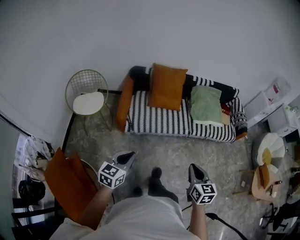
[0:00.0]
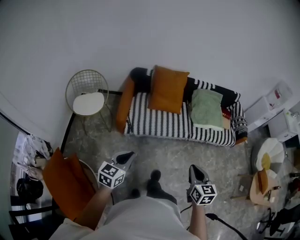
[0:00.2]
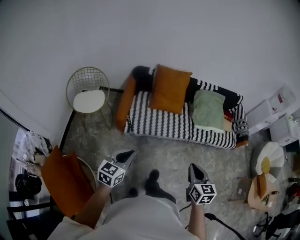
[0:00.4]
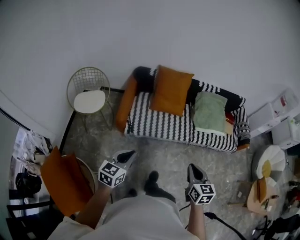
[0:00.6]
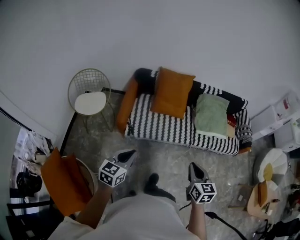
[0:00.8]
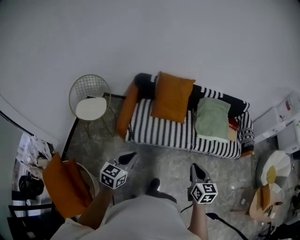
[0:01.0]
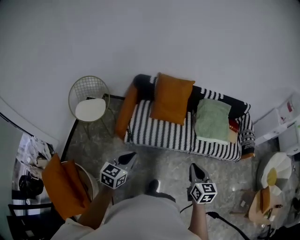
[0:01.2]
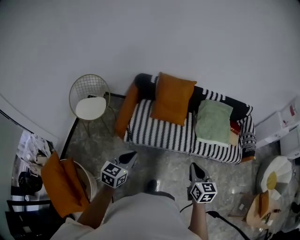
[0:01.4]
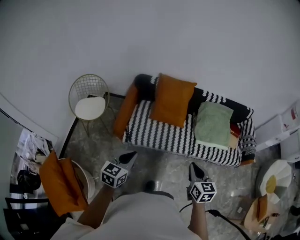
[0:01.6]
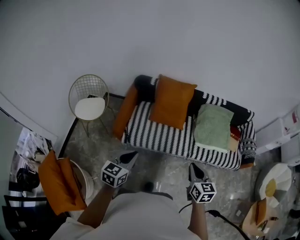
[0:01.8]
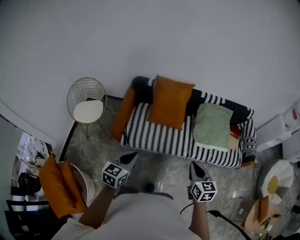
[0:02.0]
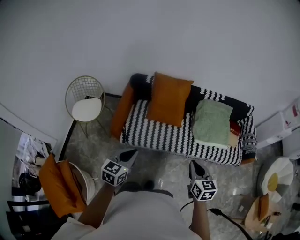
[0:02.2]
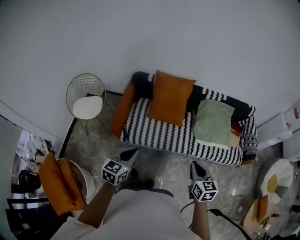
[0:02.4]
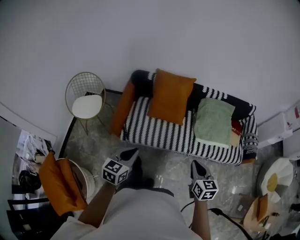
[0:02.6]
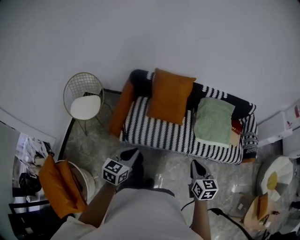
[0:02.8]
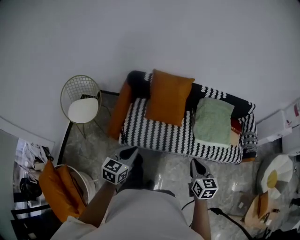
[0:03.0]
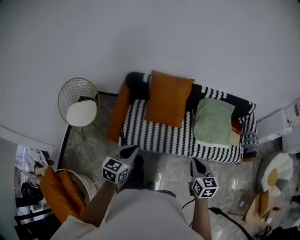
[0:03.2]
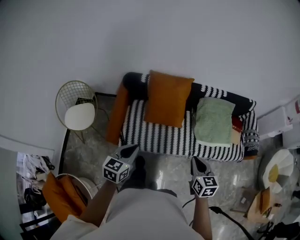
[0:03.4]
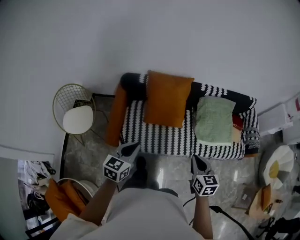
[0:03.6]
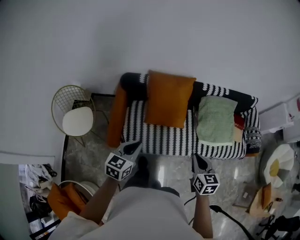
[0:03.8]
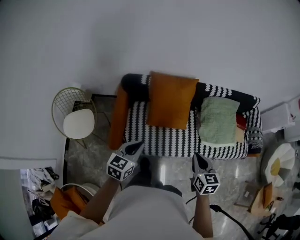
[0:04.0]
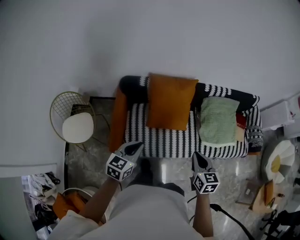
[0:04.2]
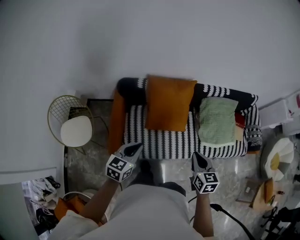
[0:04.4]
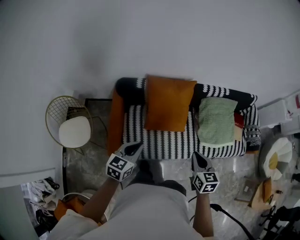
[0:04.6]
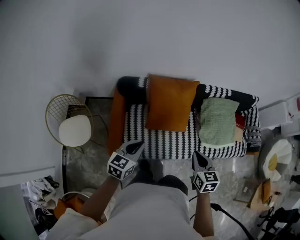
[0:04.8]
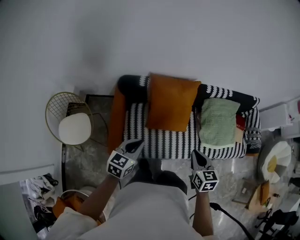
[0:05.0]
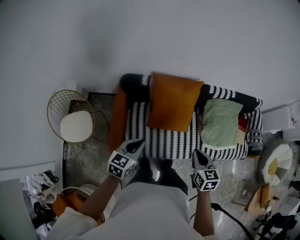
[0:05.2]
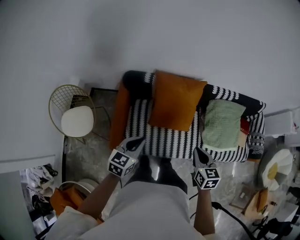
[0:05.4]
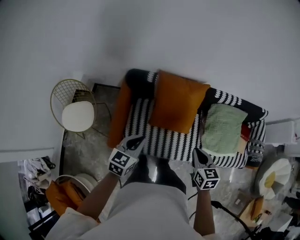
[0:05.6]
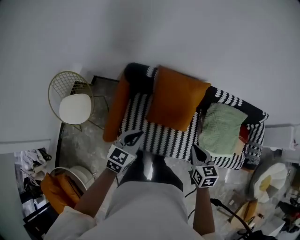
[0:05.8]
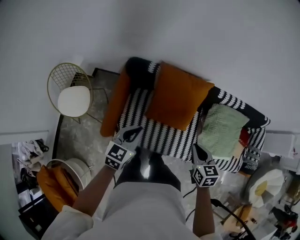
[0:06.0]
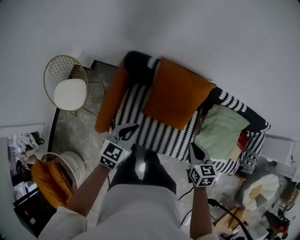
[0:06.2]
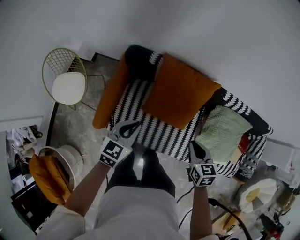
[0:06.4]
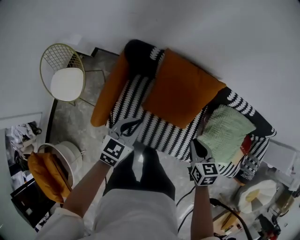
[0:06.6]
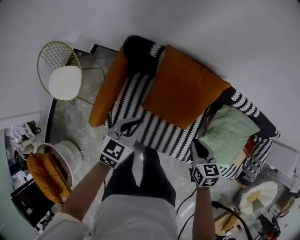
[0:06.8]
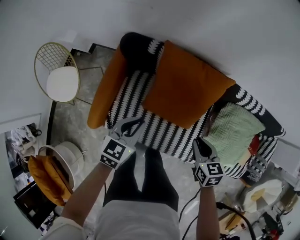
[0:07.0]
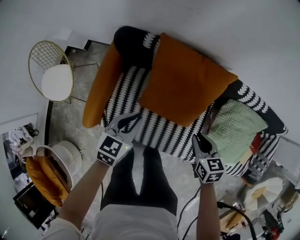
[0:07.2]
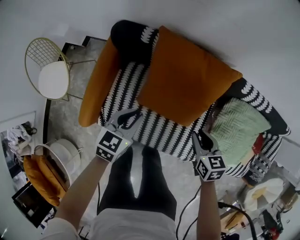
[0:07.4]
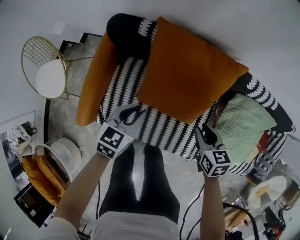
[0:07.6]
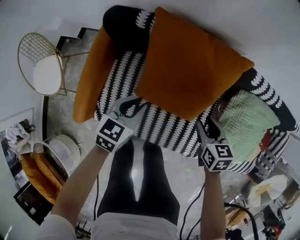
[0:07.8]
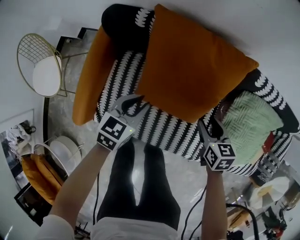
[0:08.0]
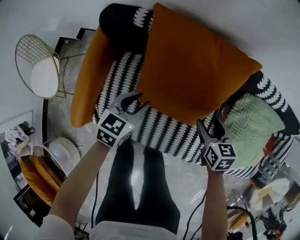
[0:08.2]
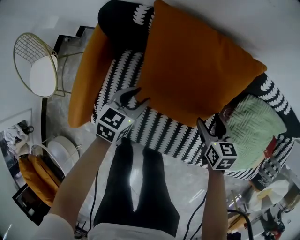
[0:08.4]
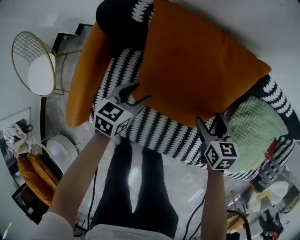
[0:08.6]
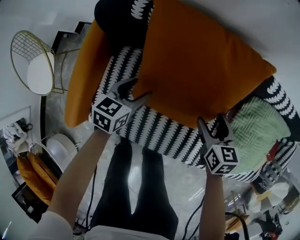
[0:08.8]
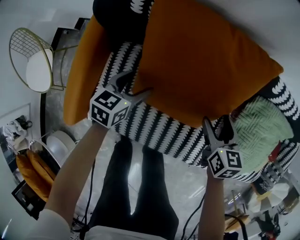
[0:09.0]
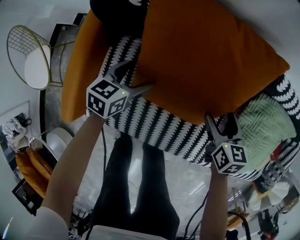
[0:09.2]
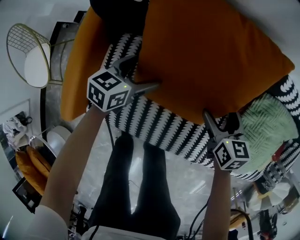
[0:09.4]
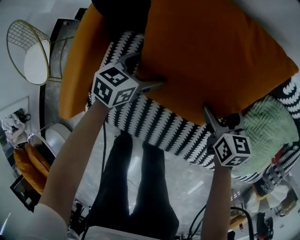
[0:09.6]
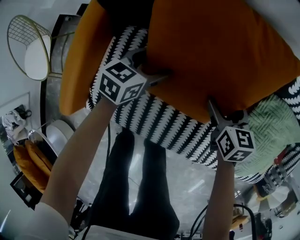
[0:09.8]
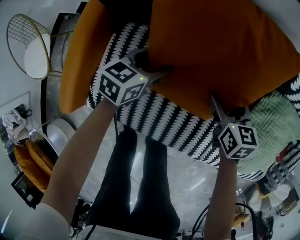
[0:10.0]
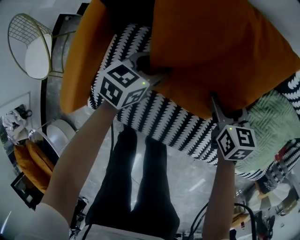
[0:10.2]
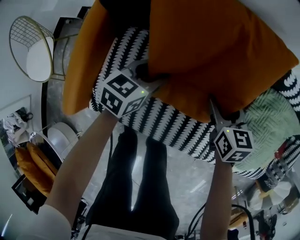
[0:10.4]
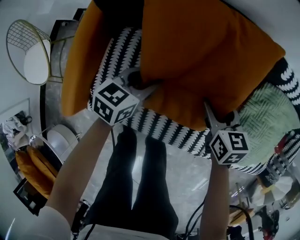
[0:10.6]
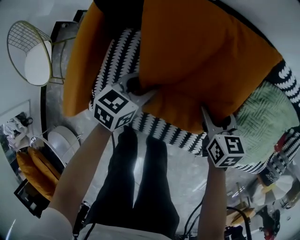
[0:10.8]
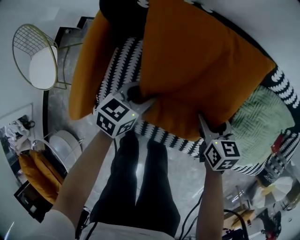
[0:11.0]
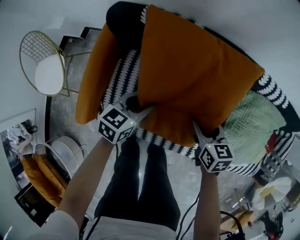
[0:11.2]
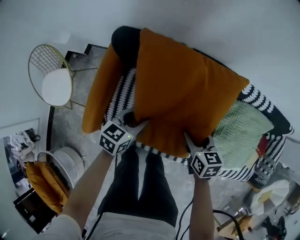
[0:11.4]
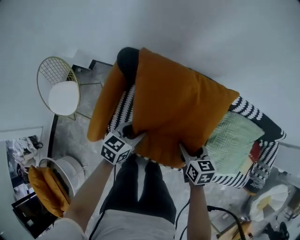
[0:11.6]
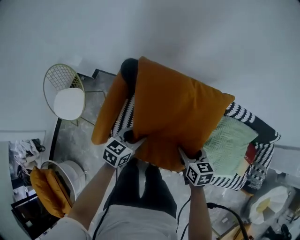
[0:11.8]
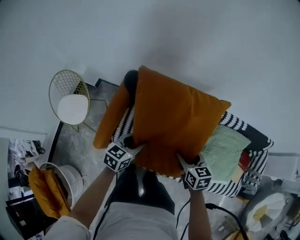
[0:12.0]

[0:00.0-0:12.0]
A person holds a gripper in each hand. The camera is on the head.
0.0 to 1.6 s: The left gripper goes roughly 25 cm forward and to the right. Meanwhile the right gripper goes roughly 25 cm forward.
1.6 to 3.0 s: The two grippers go approximately 15 cm forward.
3.0 to 4.4 s: Both grippers move forward and to the left, about 30 cm.
4.4 to 6.0 s: The right gripper moves forward and downward, some 15 cm. Meanwhile the left gripper heads forward, covering about 10 cm.
6.0 to 7.6 s: Both grippers travel together downward and forward, roughly 35 cm.
7.6 to 9.0 s: Both grippers travel together downward and forward, approximately 20 cm. The right gripper opens, while the left gripper opens its fingers.
9.0 to 10.4 s: The left gripper closes its fingers.
10.4 to 12.0 s: The two grippers go roughly 30 cm upward.

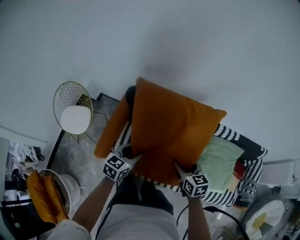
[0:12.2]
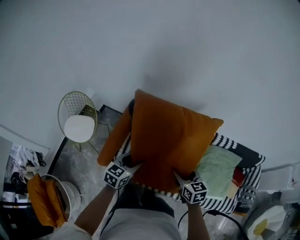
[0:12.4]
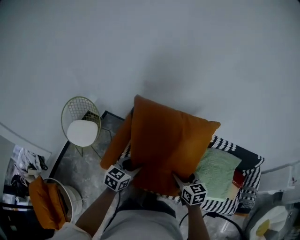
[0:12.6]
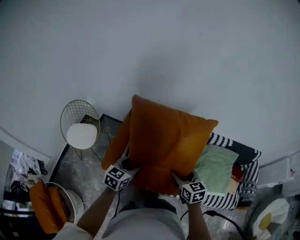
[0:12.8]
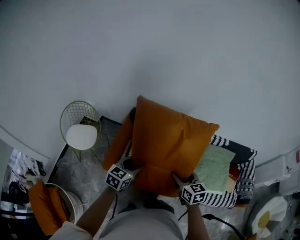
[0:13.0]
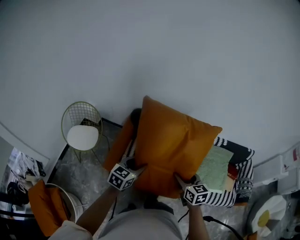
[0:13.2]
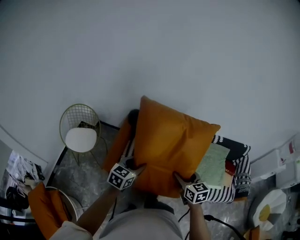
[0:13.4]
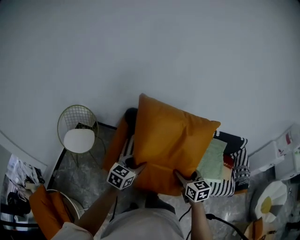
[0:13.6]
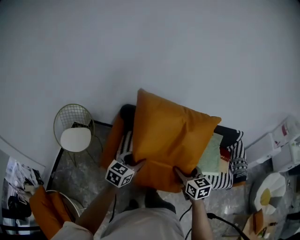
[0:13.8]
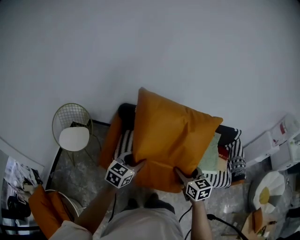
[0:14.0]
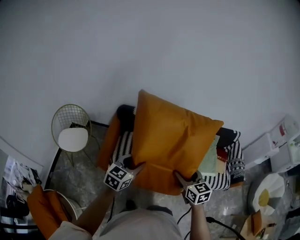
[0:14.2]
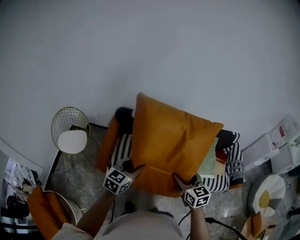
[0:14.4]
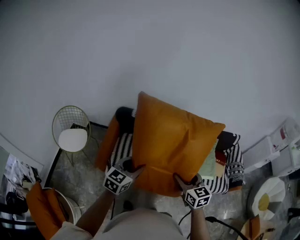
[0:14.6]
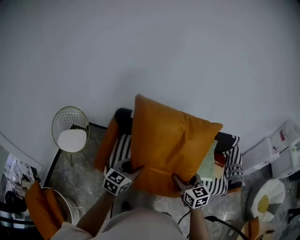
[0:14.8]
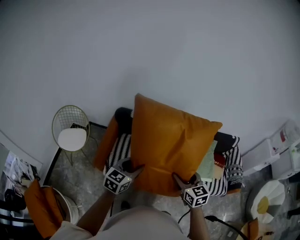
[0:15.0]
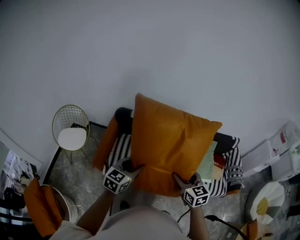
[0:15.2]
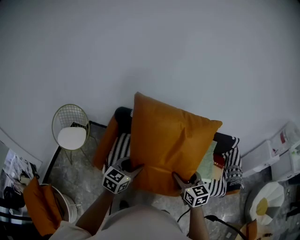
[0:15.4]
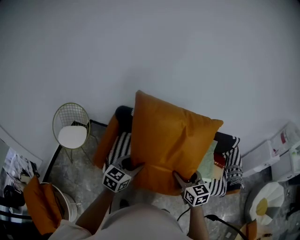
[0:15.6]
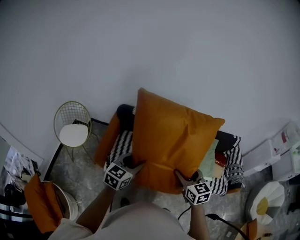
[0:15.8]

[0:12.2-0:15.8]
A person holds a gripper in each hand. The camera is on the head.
12.2 to 14.0 s: The grippers both shift backward and upward by approximately 35 cm.
14.0 to 15.8 s: The two grippers go roughly 10 cm to the right.

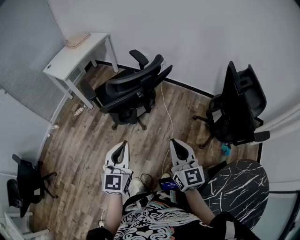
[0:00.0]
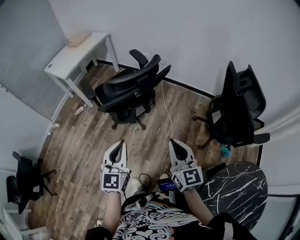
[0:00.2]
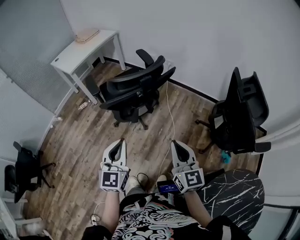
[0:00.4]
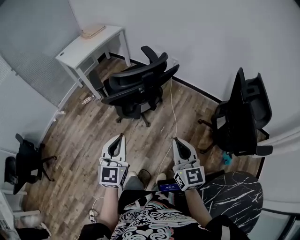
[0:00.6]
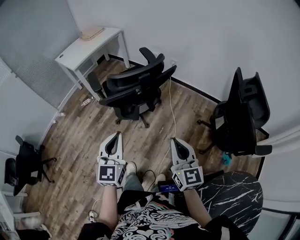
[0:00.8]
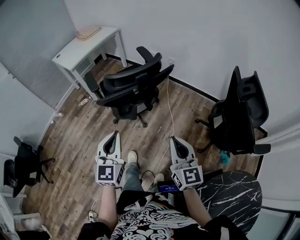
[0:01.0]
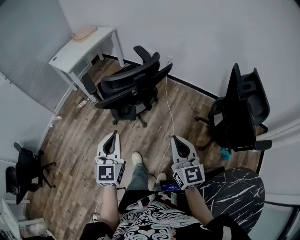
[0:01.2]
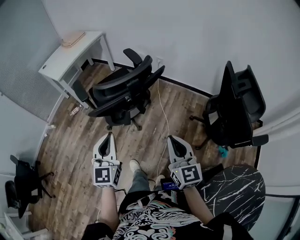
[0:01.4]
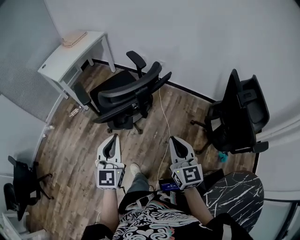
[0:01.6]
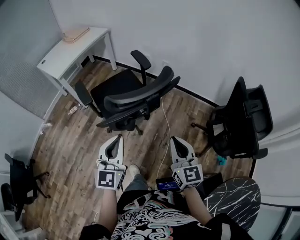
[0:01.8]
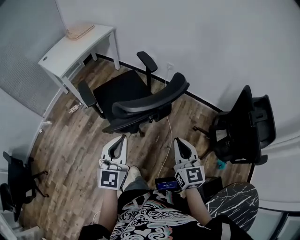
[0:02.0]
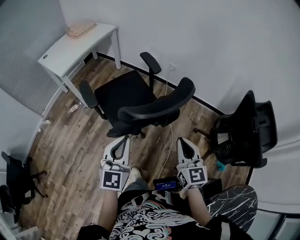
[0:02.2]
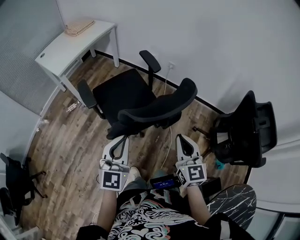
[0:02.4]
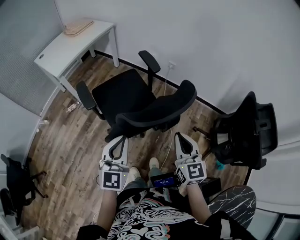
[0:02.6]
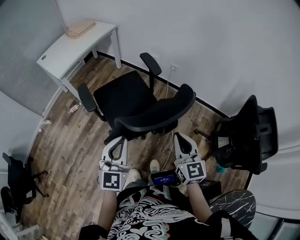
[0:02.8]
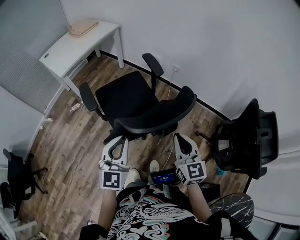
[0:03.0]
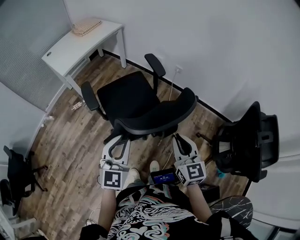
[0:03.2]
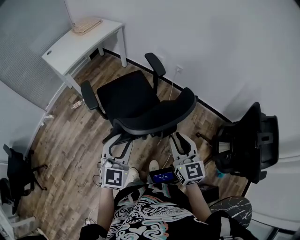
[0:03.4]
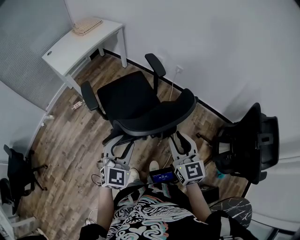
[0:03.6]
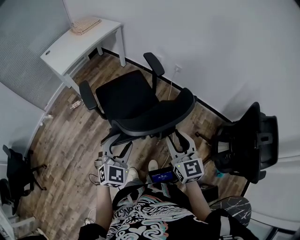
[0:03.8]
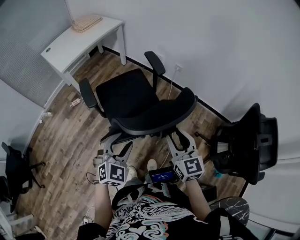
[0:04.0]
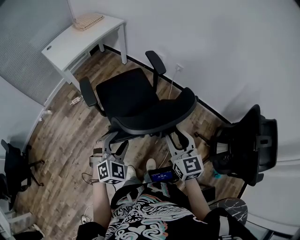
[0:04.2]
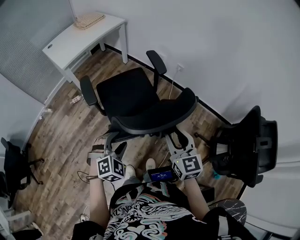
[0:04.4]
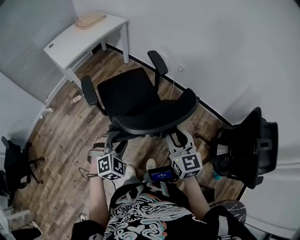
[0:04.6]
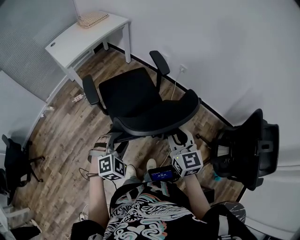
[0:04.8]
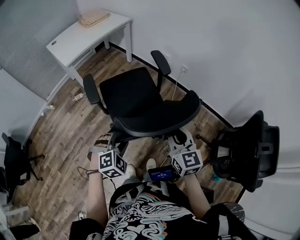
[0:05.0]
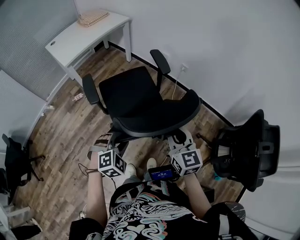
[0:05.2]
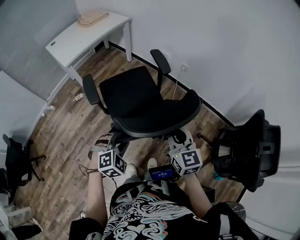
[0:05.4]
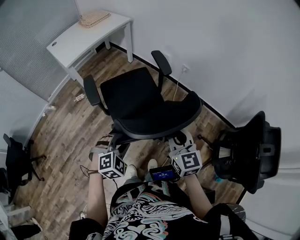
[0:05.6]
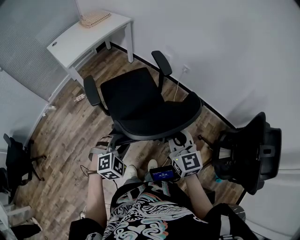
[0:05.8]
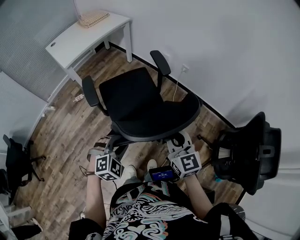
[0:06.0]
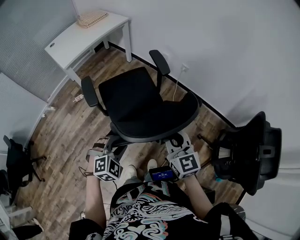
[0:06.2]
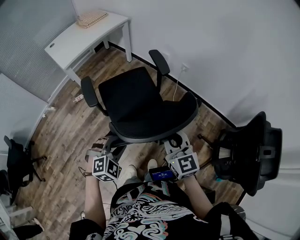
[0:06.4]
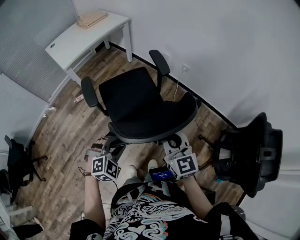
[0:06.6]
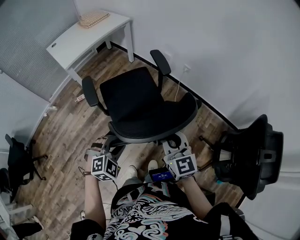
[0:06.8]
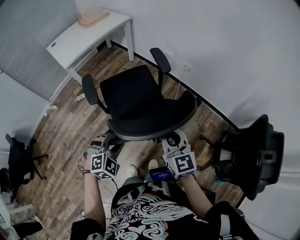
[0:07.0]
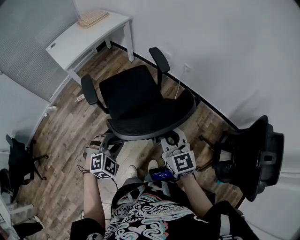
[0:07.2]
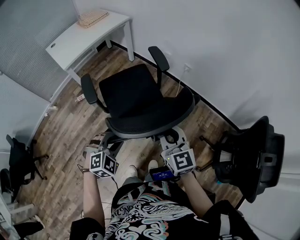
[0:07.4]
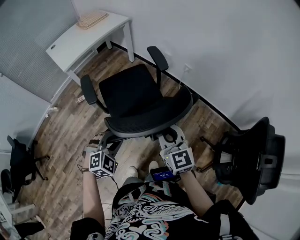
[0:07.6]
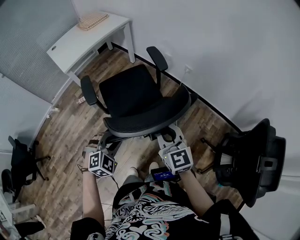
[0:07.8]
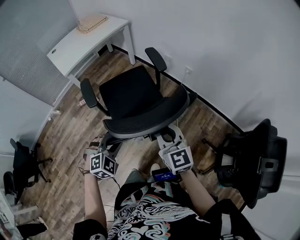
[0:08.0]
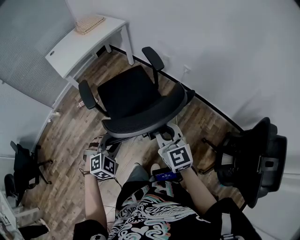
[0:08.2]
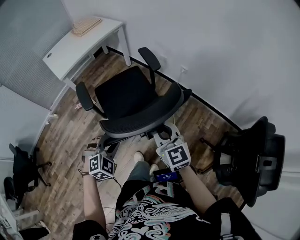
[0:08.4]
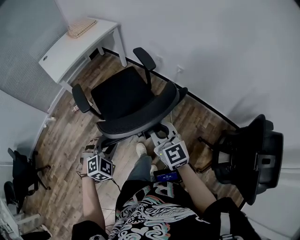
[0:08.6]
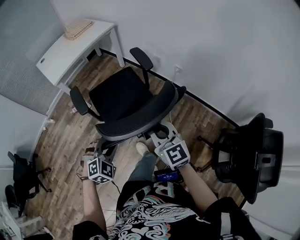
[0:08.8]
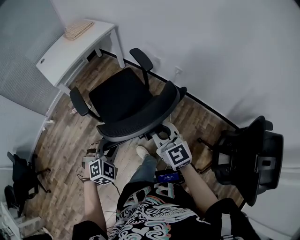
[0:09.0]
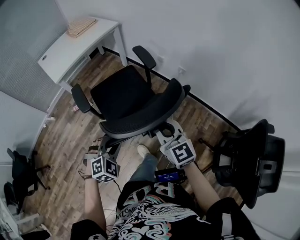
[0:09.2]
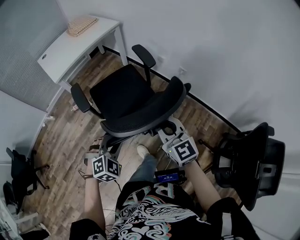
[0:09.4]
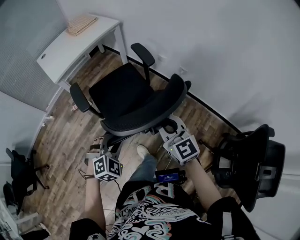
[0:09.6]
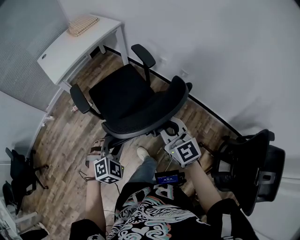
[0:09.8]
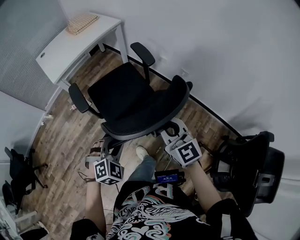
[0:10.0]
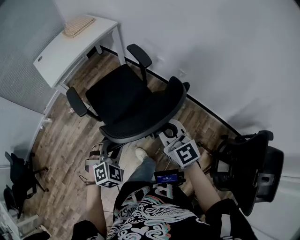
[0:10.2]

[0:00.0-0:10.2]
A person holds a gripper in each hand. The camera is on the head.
0.0 to 1.4 s: The right gripper moves some 5 cm. Meanwhile the left gripper heads forward, covering approximately 5 cm.
1.4 to 3.0 s: The left gripper is displaced forward by some 15 cm. Meanwhile the right gripper is displaced forward and to the left by roughly 20 cm.
3.0 to 4.4 s: The left gripper is displaced downward by approximately 10 cm, angles its fingers downward, by roughly 30 degrees, and opens up, while the right gripper opens up.
4.4 to 5.8 s: The left gripper closes up.
5.8 to 7.2 s: The grippers stay close to where they were, moving slightly.
7.2 to 8.8 s: The left gripper shifts by roughly 5 cm, while the right gripper travels forward by some 5 cm.
8.8 to 10.2 s: Both grippers travel together forward, about 5 cm.
